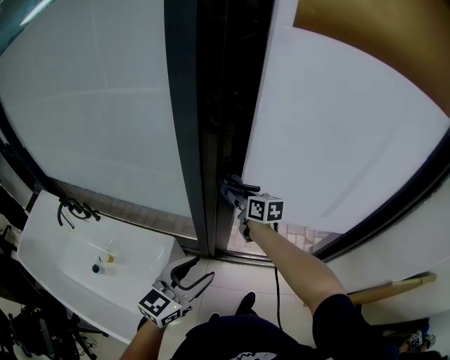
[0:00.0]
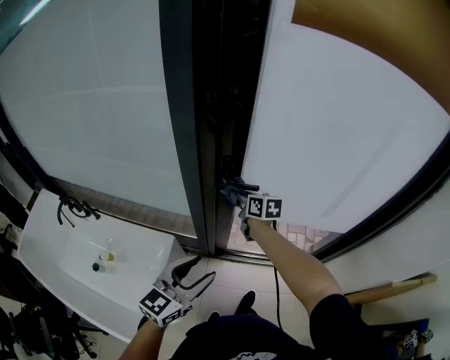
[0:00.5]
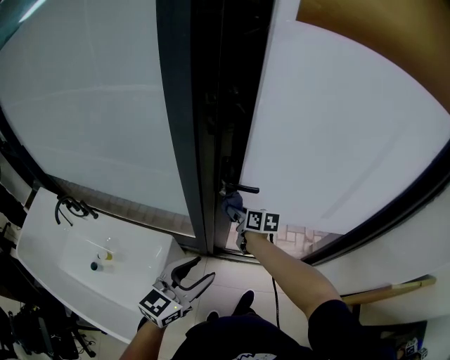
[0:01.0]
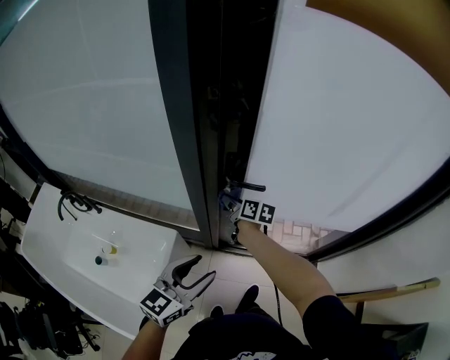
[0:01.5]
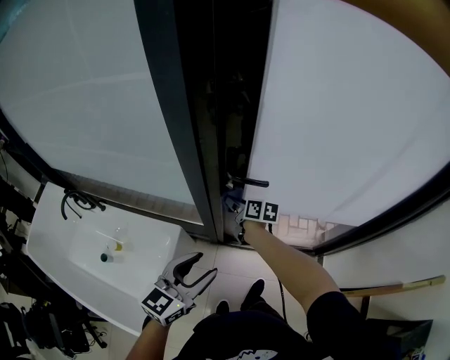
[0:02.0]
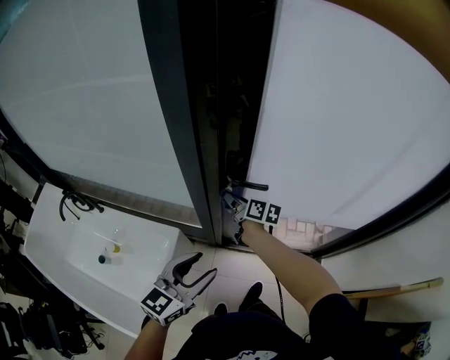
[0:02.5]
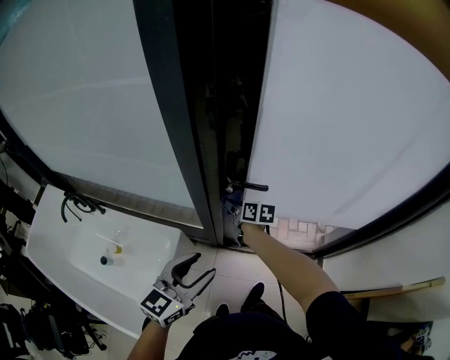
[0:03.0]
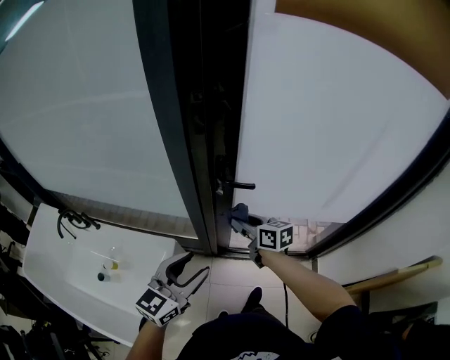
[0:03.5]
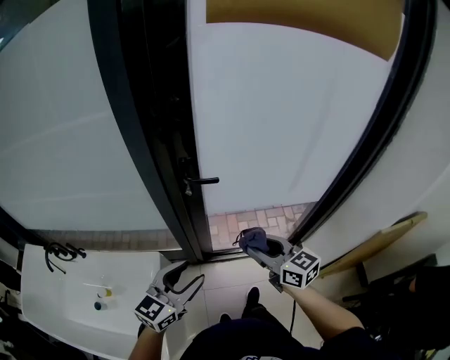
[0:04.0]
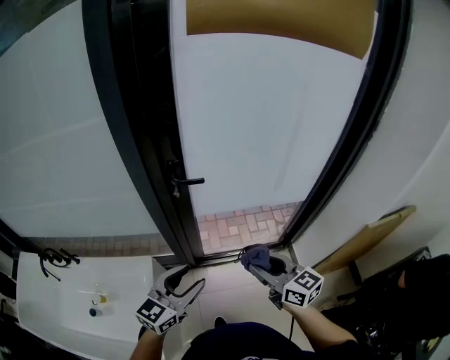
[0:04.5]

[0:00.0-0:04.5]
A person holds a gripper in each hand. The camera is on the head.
0.0 to 2.0 s: The right gripper moves downward, approximately 15 cm, and turns by some 20 degrees.
2.0 to 4.5 s: The left gripper travels backward by about 10 cm. Meanwhile the right gripper travels backward, upward and to the right by about 40 cm, and turns by some 40 degrees.

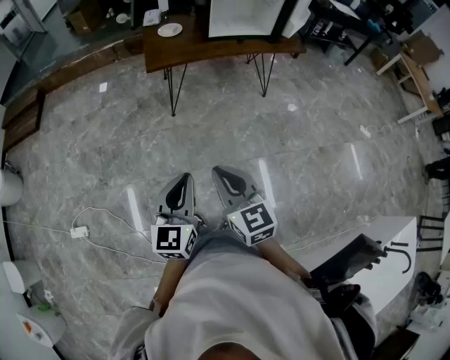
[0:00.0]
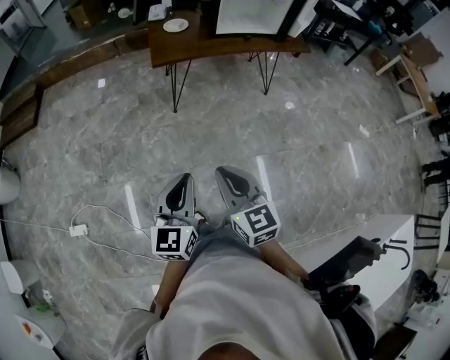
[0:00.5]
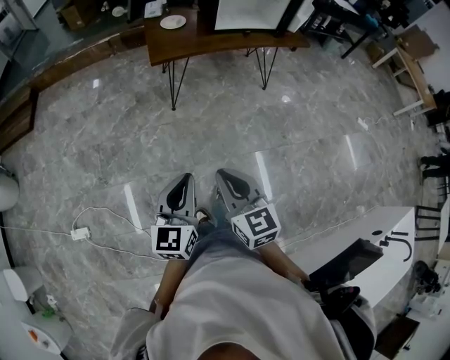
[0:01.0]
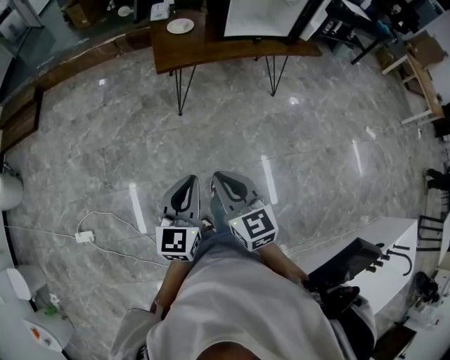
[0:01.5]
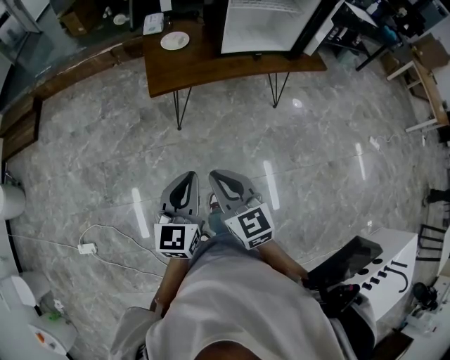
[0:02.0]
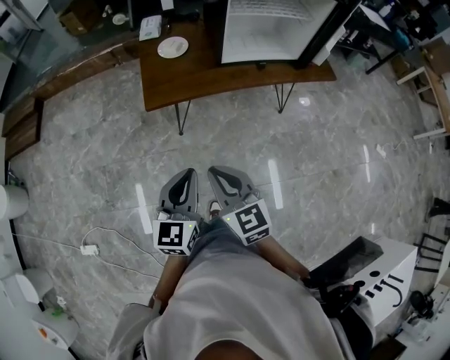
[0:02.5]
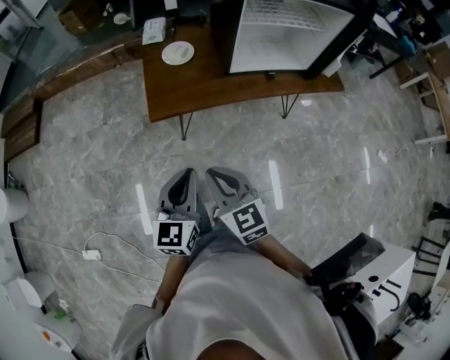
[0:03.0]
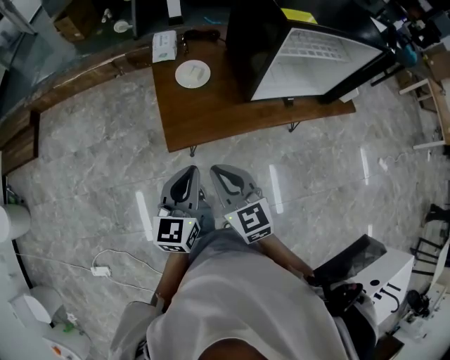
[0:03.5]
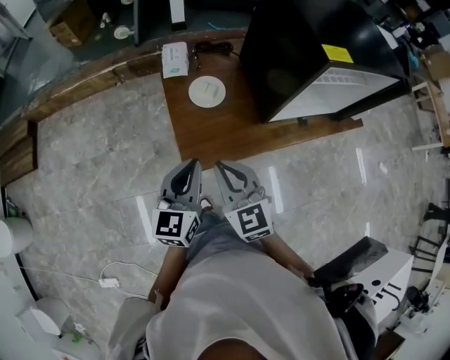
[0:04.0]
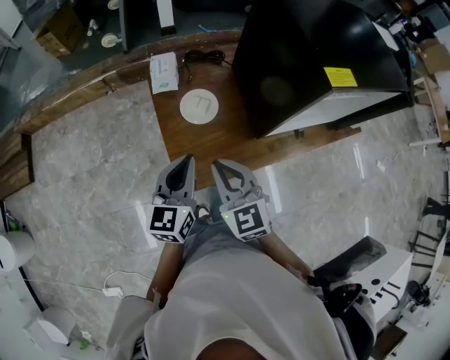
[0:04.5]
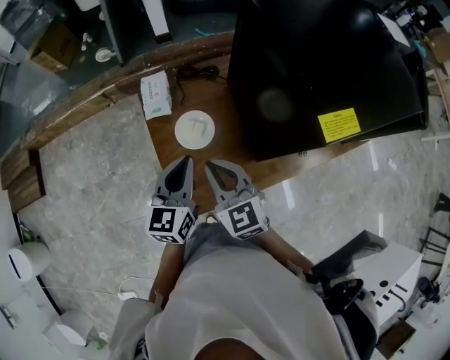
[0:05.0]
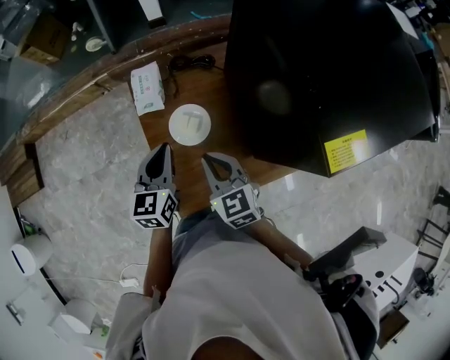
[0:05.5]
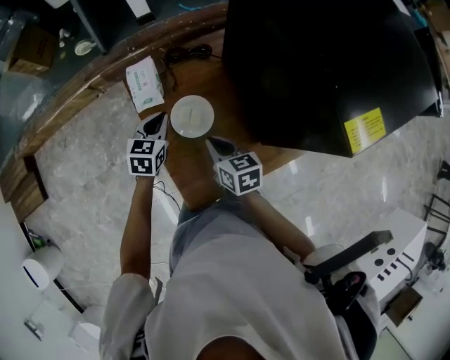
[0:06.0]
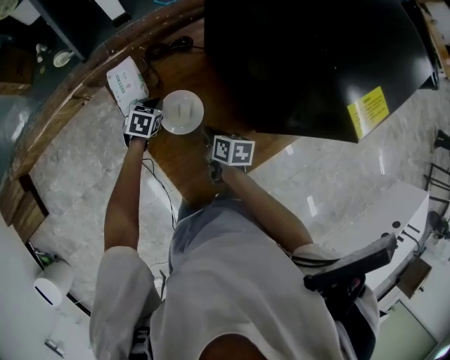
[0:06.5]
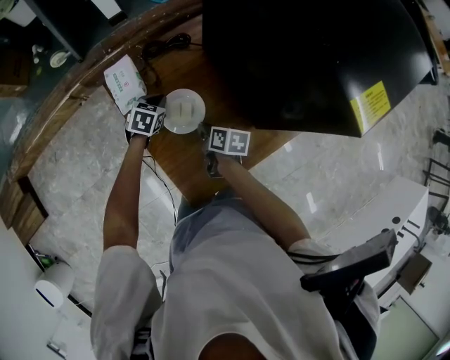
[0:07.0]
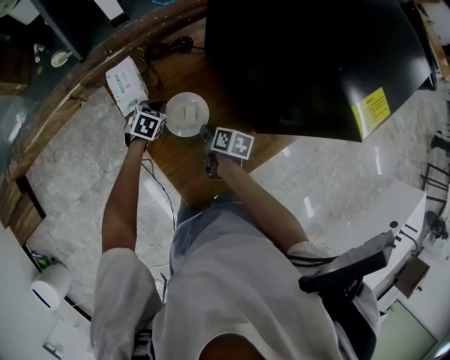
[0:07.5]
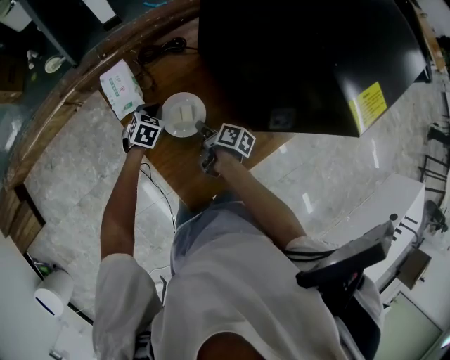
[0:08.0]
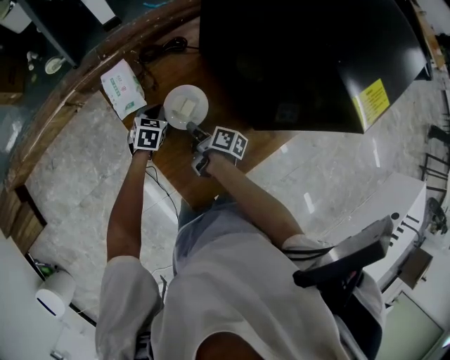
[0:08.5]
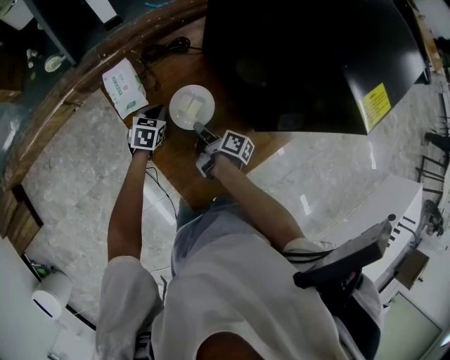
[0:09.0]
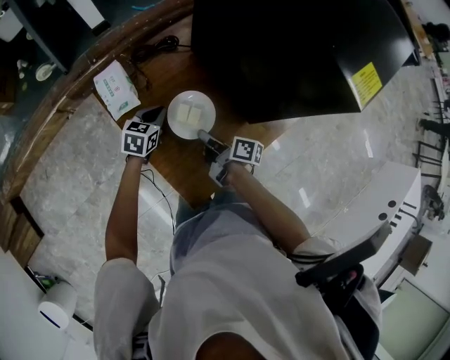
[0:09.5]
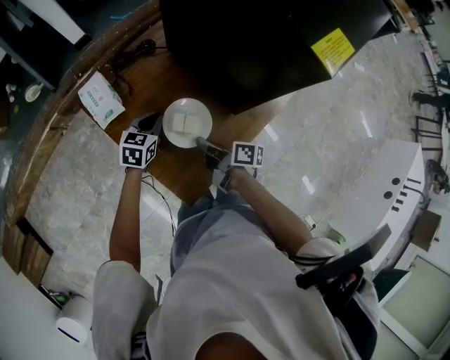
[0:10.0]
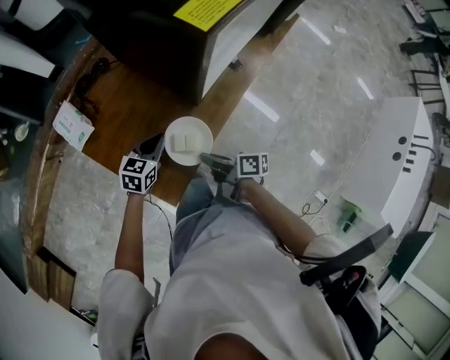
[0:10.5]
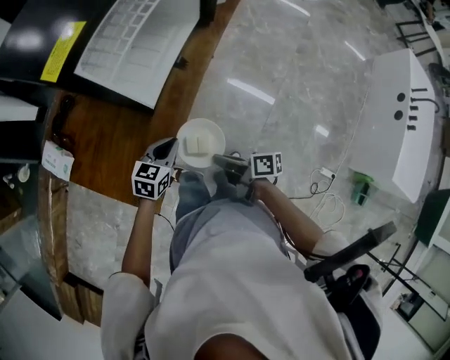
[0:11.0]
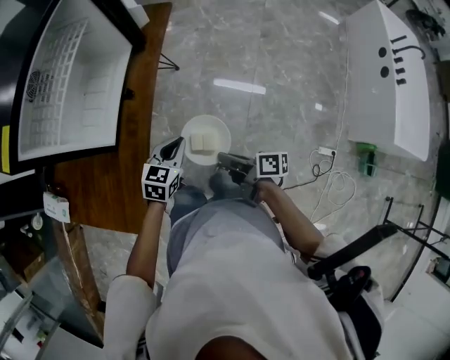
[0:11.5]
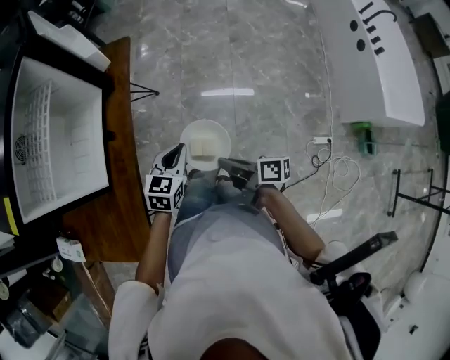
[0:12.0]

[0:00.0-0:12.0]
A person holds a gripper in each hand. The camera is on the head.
0.0 to 2.0 s: The two grippers go approximately 35 cm forward.
2.0 to 4.0 s: The pair of grippers is taken forward, some 70 cm.
4.0 to 6.0 s: Both grippers travel together forward and downward, about 50 cm. The left gripper turns by some 30 degrees. The right gripper rotates about 40 degrees.
6.0 to 8.0 s: Both grippers travel together downward, some 15 cm. The left gripper changes its angle by about 30 degrees, while the right gripper rolls clockwise, seen from behind, by approximately 60 degrees.
8.0 to 10.0 s: The left gripper is displaced to the right, backward and upward by roughly 10 cm, and swivels some 20 degrees; the right gripper travels backward and upward by some 10 cm.
10.0 to 12.0 s: The two grippers travel together, some 80 cm. The left gripper swivels roughly 50 degrees. Meanwhile the right gripper turns by about 40 degrees.

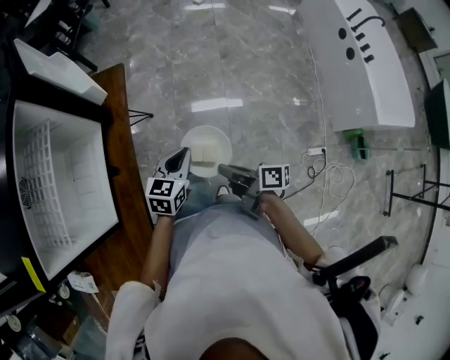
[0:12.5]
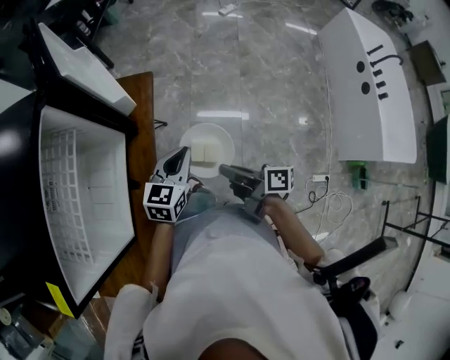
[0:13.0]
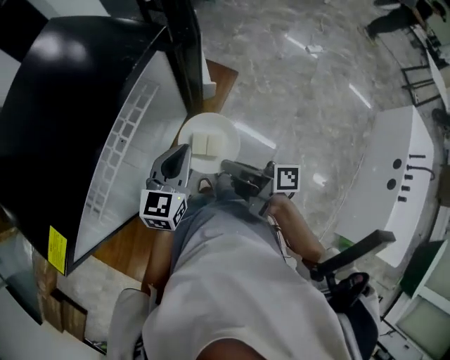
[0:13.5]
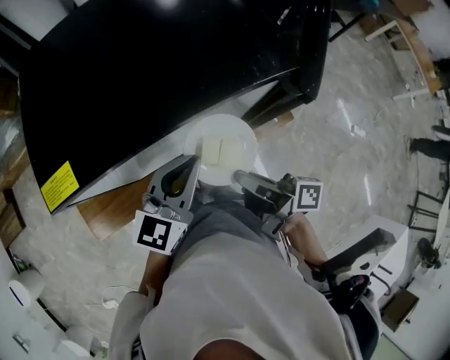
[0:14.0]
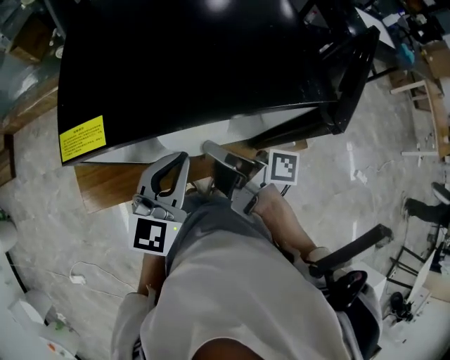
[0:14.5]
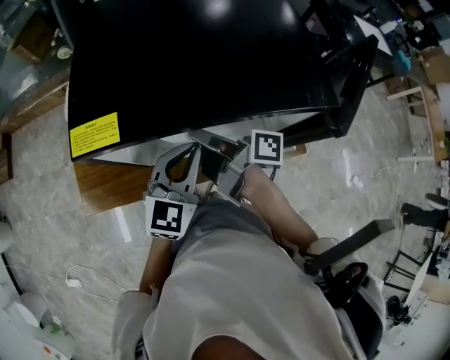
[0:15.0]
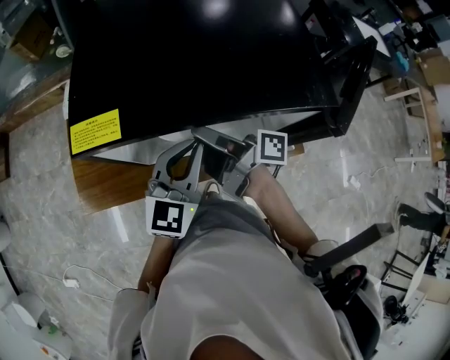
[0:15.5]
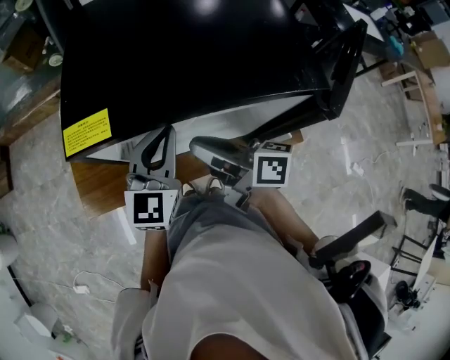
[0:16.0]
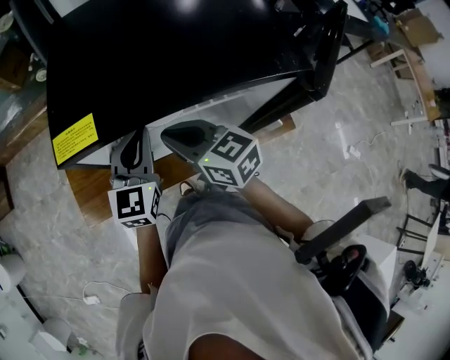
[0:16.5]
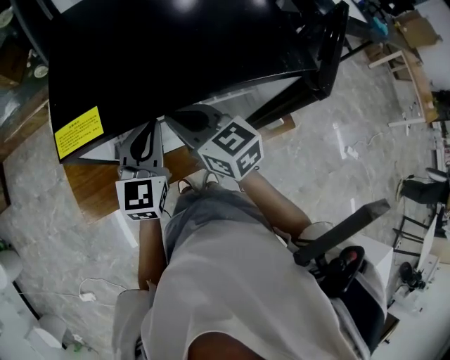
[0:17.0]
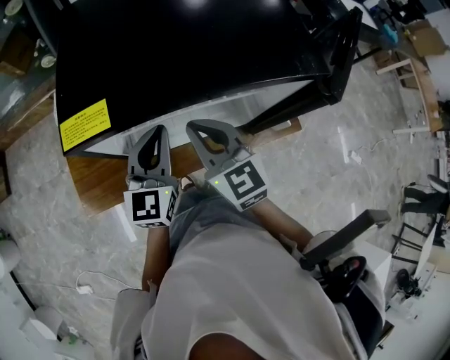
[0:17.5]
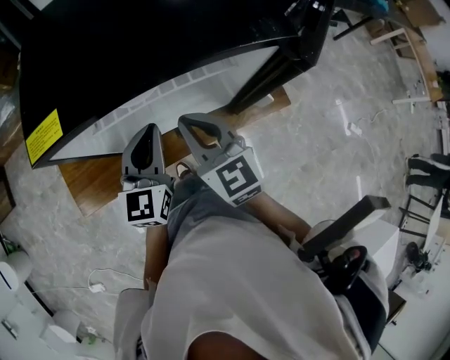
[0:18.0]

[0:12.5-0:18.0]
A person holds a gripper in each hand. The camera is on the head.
12.5 to 14.5 s: The left gripper shifts approximately 30 cm backward and upward, and changes its angle by approximately 30 degrees; the right gripper goes forward and backward, approximately 35 cm each way, reversing 2 times, and changes its angle by approximately 20 degrees.
14.5 to 16.0 s: The right gripper rotates roughly 20 degrees; the left gripper is displaced forward by about 5 cm.
16.0 to 18.0 s: The right gripper shifts by some 5 cm, and rotates around the line of its fingers by approximately 50 degrees, counterclockwise from behind; the left gripper moves roughly 5 cm.

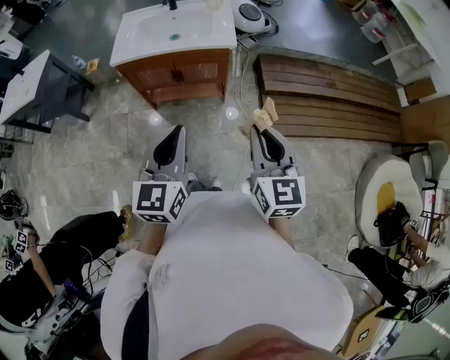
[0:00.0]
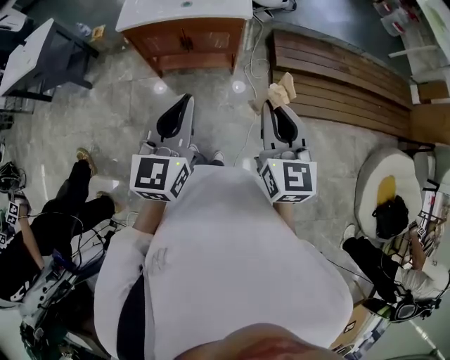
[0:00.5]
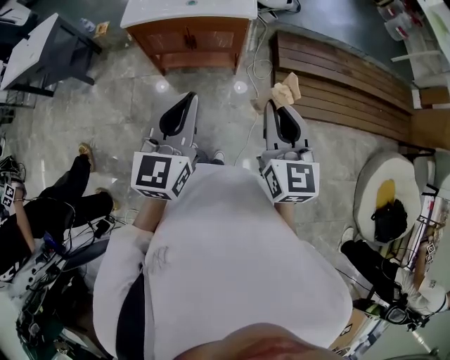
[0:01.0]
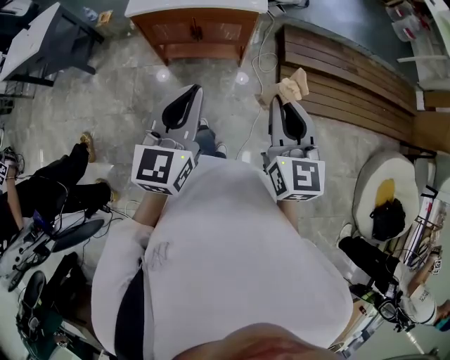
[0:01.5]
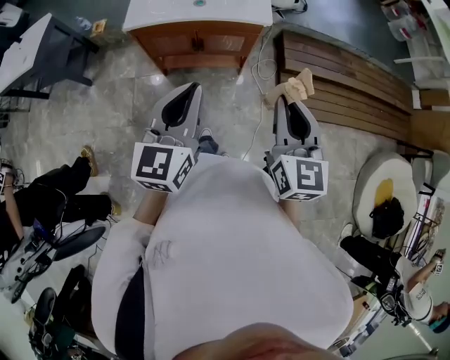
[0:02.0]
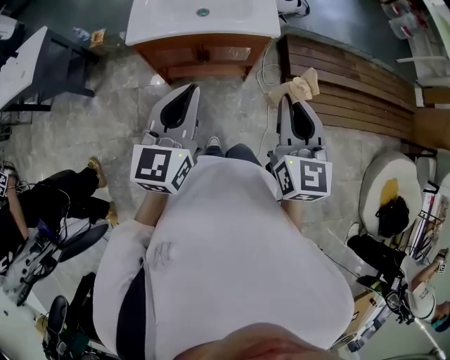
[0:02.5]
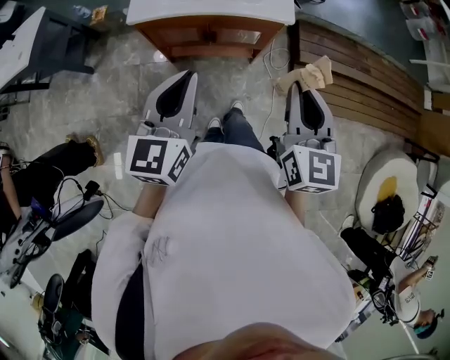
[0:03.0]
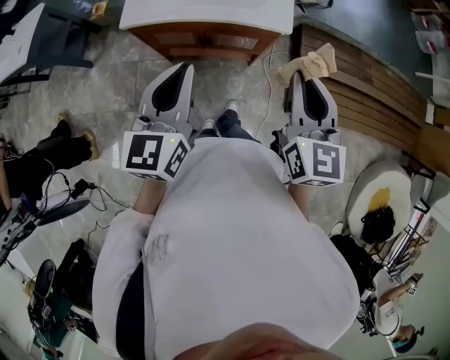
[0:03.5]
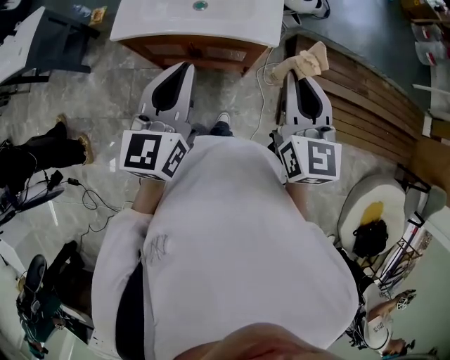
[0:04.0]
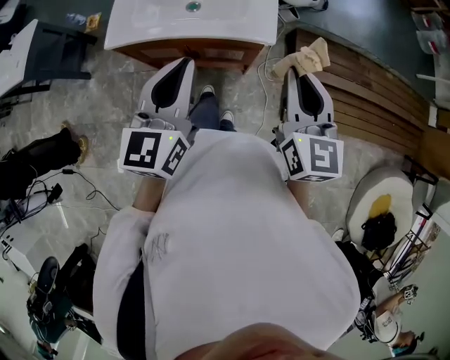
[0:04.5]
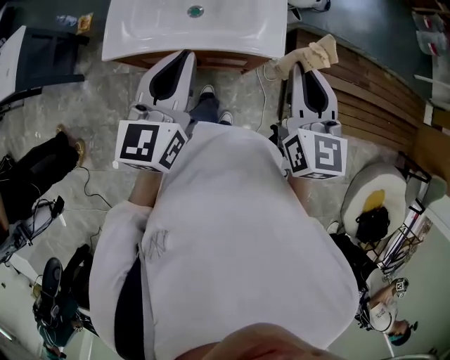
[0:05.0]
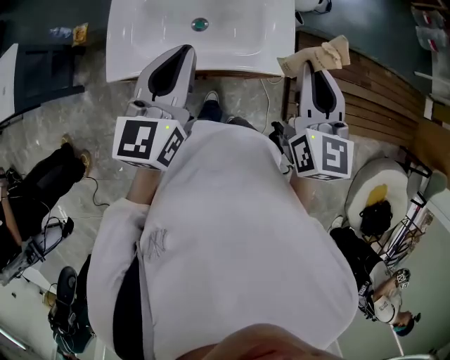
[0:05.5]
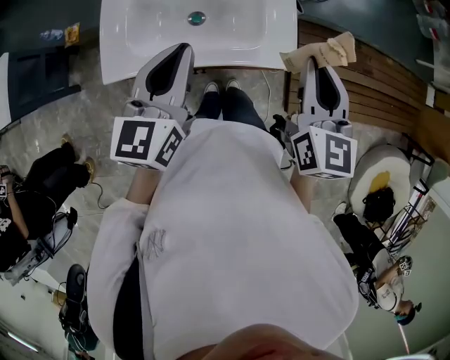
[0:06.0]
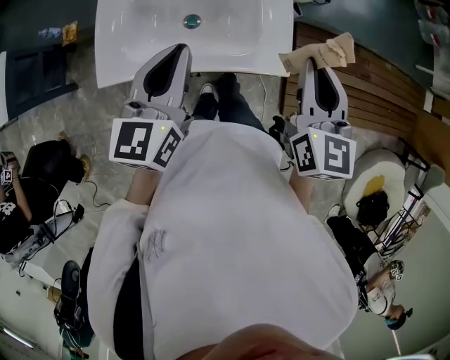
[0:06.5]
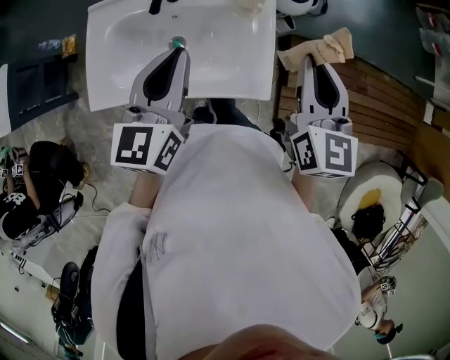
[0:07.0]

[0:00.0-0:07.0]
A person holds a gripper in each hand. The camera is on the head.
0.0 to 2.0 s: The grippers both shift forward and to the left by roughly 10 cm.
2.0 to 3.5 s: Both grippers travel together forward, roughly 15 cm.
3.5 to 5.0 s: Both grippers travel together forward, roughly 15 cm.
5.0 to 7.0 s: The grippers both shift forward by some 20 cm.
